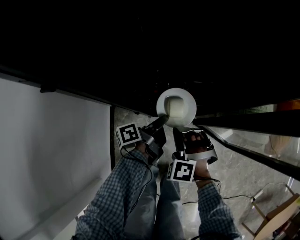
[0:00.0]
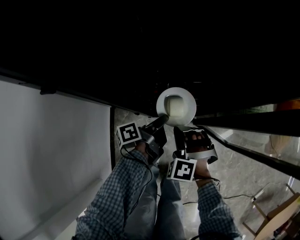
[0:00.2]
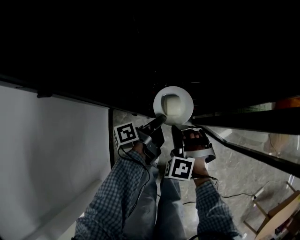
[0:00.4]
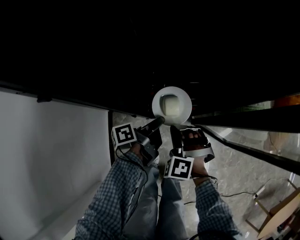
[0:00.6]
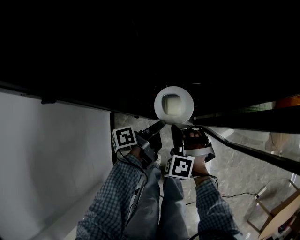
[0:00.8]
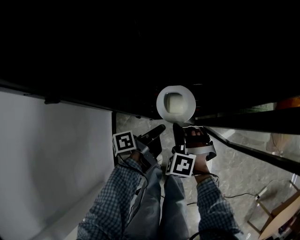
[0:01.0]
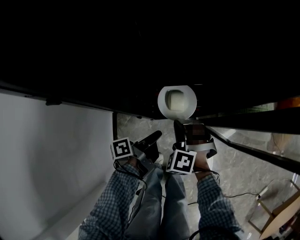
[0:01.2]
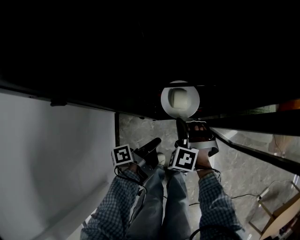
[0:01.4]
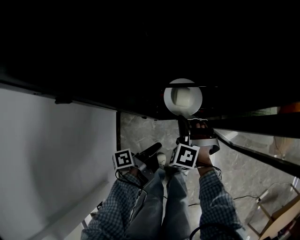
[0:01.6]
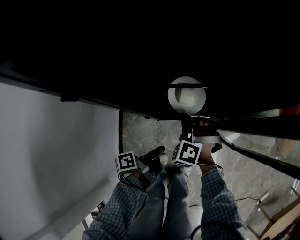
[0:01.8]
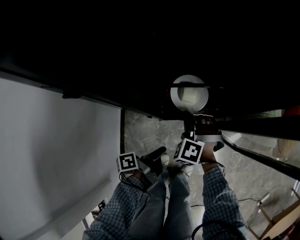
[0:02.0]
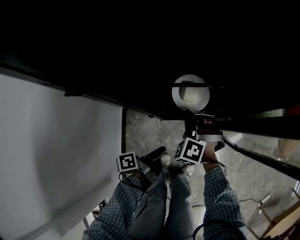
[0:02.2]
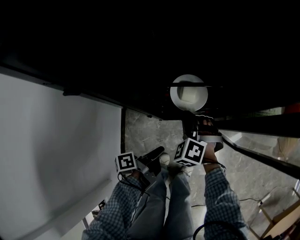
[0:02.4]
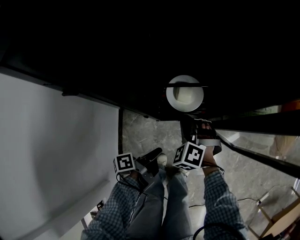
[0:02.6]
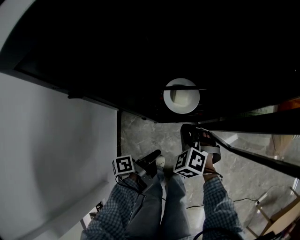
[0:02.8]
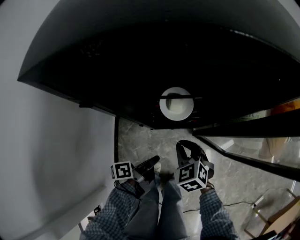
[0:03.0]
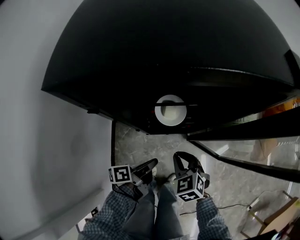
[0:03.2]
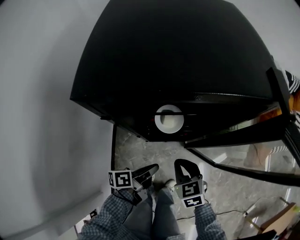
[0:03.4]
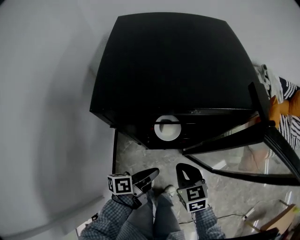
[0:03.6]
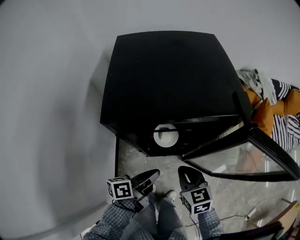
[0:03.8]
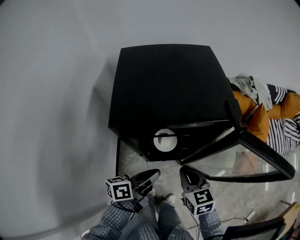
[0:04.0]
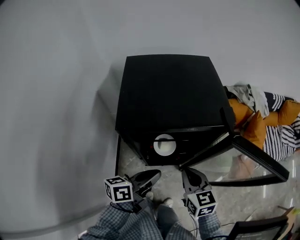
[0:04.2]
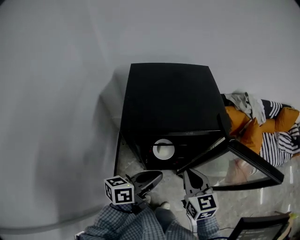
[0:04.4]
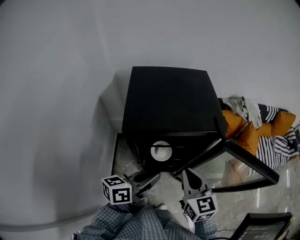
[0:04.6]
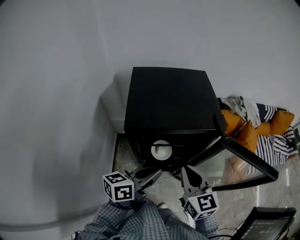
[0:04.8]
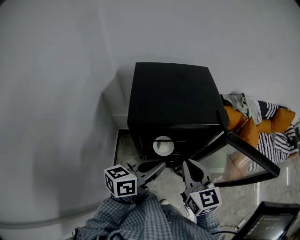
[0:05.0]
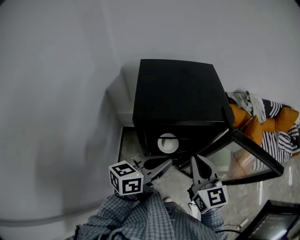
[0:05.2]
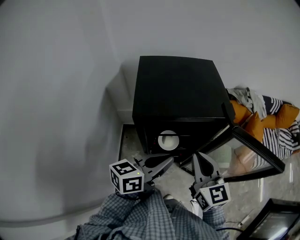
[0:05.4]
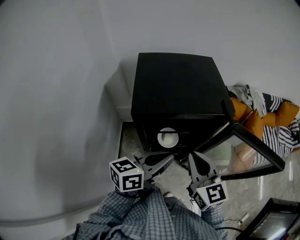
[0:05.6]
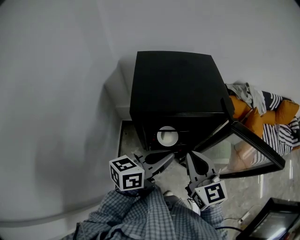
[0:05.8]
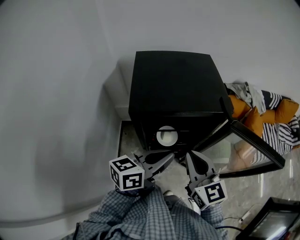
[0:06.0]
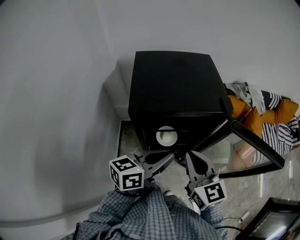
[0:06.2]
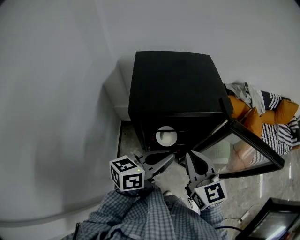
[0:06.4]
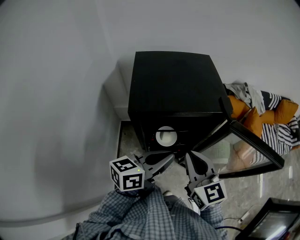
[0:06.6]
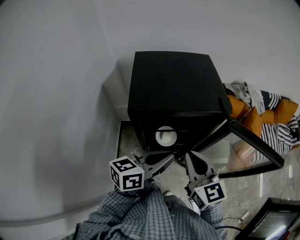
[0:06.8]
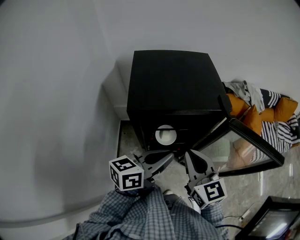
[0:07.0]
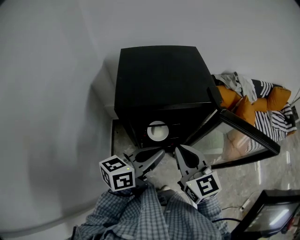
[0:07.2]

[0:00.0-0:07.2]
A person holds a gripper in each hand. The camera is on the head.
0.0 to 1.4 s: The right gripper moves some 5 cm.
2.8 to 4.4 s: The right gripper travels upward by roughly 35 cm, and twists about 50 degrees clockwise, seen from behind.
4.4 to 5.8 s: The right gripper goes approximately 5 cm upward.

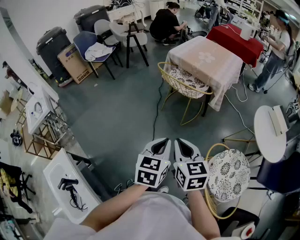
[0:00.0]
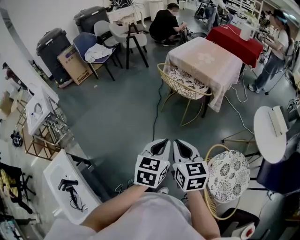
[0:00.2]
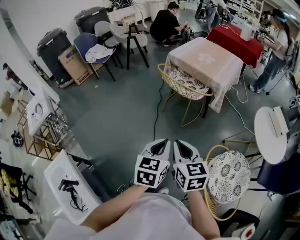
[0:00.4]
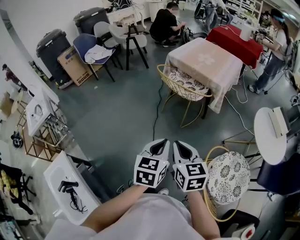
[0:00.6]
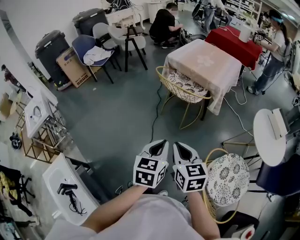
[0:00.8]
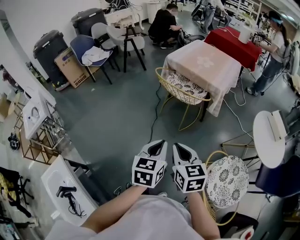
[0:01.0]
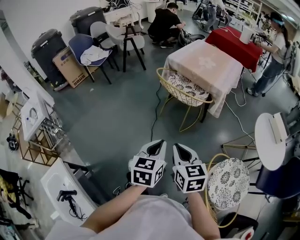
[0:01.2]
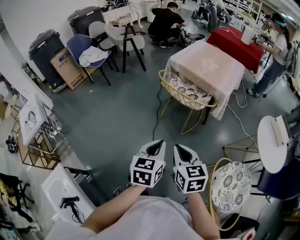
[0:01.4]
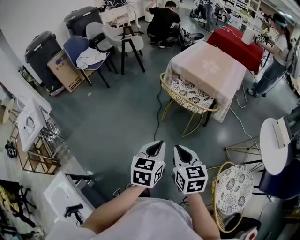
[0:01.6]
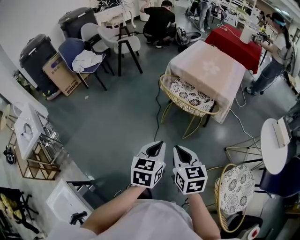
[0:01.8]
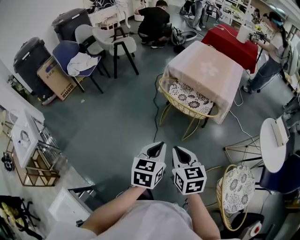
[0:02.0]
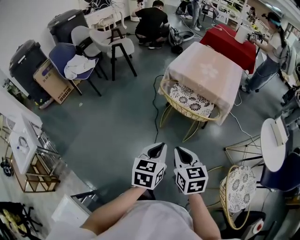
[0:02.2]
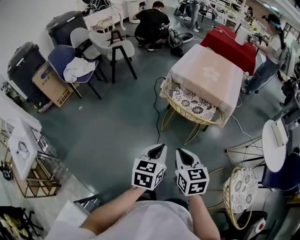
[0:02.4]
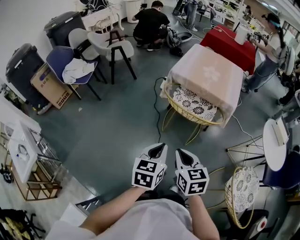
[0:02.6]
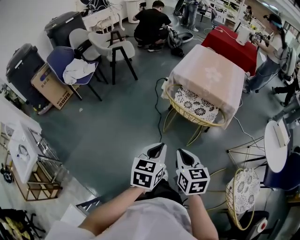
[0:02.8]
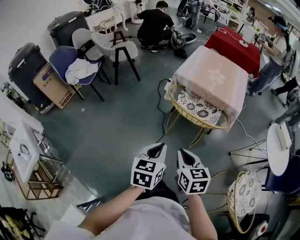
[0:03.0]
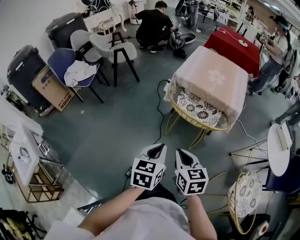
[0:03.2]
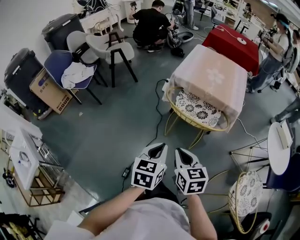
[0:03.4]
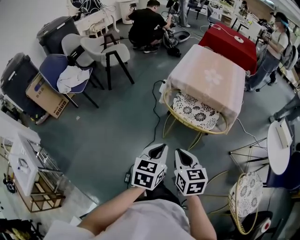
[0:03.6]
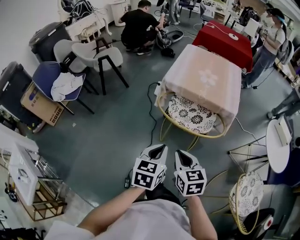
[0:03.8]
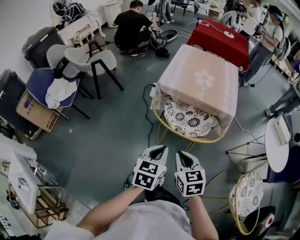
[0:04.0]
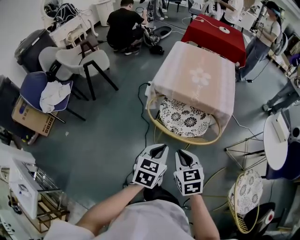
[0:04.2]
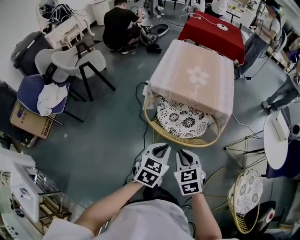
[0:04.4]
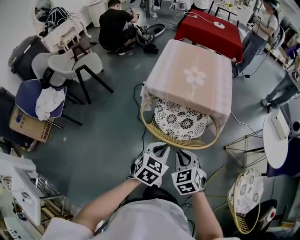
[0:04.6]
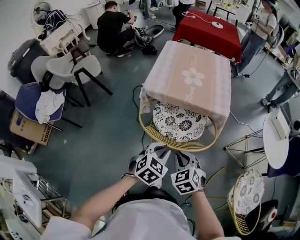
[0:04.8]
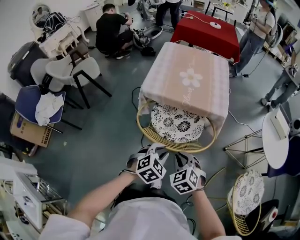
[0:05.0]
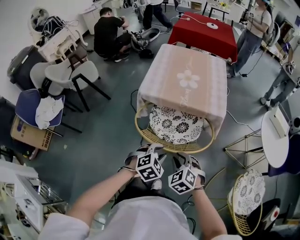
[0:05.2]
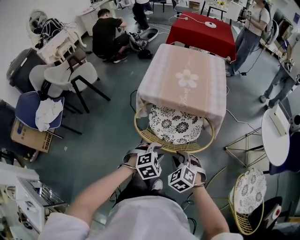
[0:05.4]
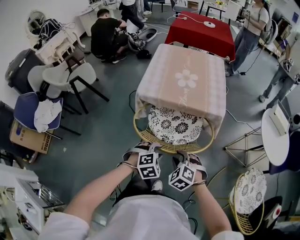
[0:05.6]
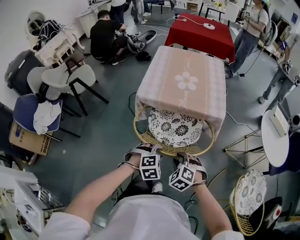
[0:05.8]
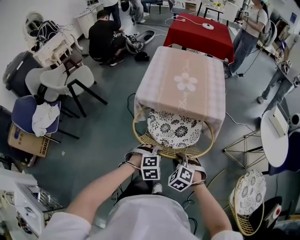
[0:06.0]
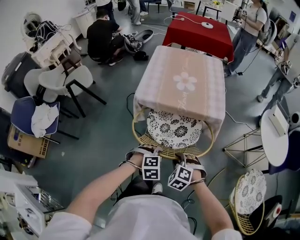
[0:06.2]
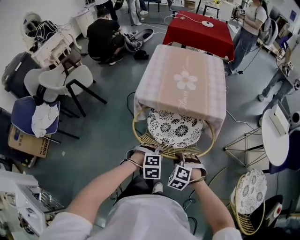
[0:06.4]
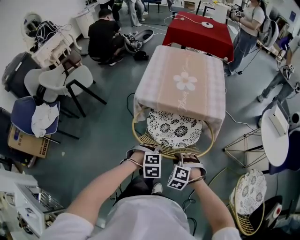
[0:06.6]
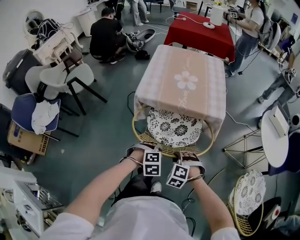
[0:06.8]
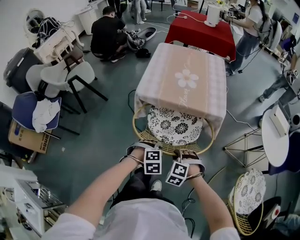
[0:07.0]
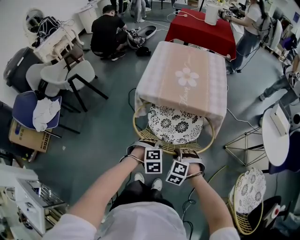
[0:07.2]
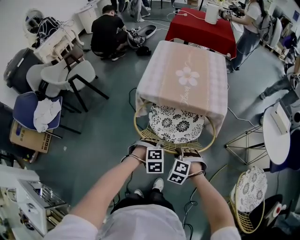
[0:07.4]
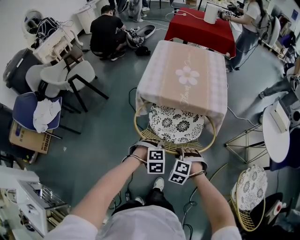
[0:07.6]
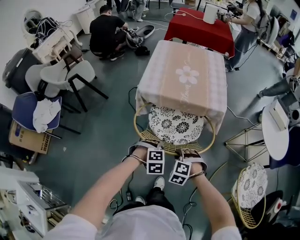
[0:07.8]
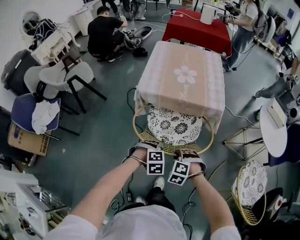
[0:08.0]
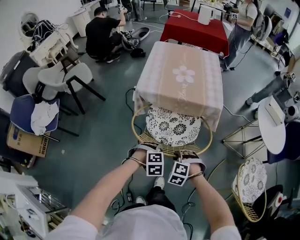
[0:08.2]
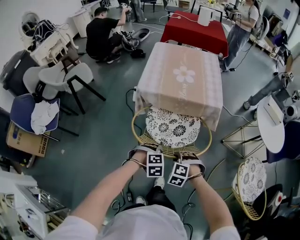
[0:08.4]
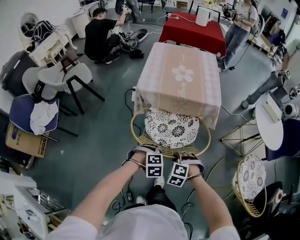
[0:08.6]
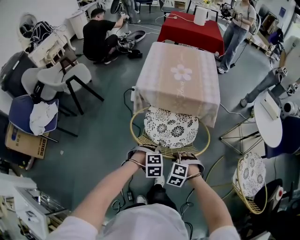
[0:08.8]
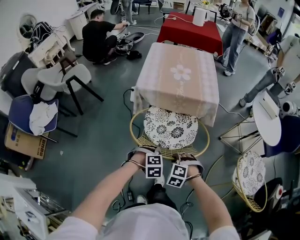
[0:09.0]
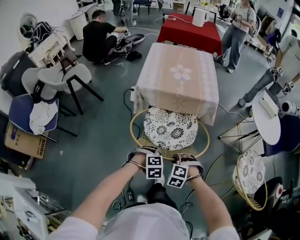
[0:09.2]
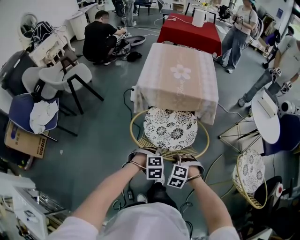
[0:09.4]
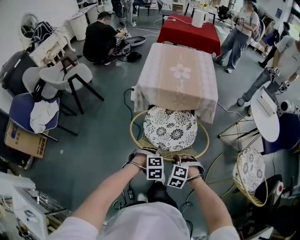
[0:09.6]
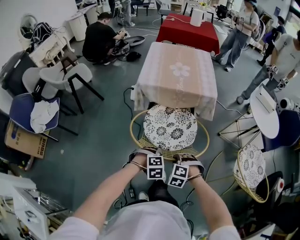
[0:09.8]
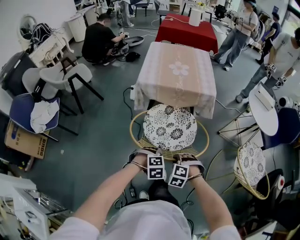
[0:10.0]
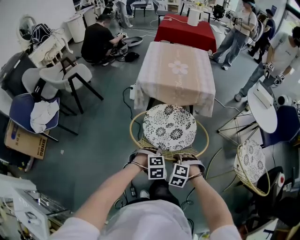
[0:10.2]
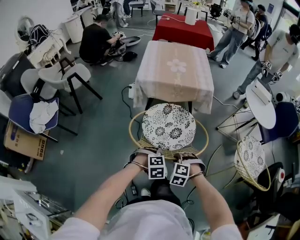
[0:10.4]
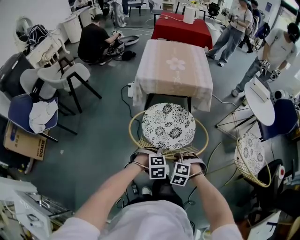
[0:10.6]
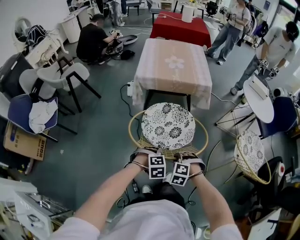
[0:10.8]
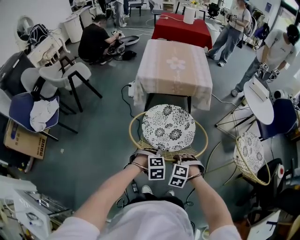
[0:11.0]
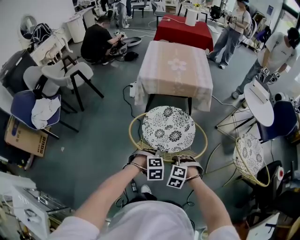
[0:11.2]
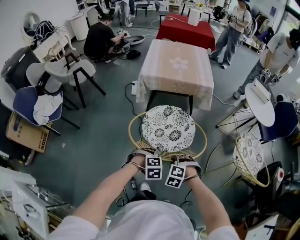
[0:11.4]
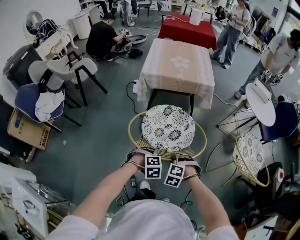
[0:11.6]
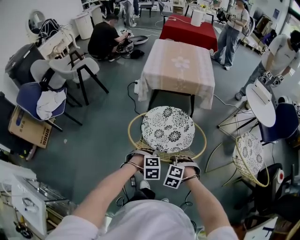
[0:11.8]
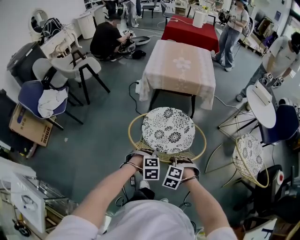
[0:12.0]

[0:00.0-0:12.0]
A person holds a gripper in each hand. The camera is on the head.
0.0 to 1.6 s: The grippers both shift forward and to the left by approximately 15 cm.
1.6 to 3.0 s: The left gripper travels to the left and forward by some 20 cm, while the right gripper shifts roughly 20 cm forward and to the left.
3.0 to 4.4 s: The two grippers go roughly 20 cm forward. The left gripper changes its angle by about 30 degrees. The right gripper rotates approximately 20 degrees.
4.4 to 6.0 s: The grippers both shift downward and forward by about 15 cm. The left gripper twists about 60 degrees clockwise, seen from behind, and opens its fingers; the right gripper rotates about 40 degrees, and opens up.
6.0 to 7.6 s: The grippers stay close to where they were, moving slightly.
7.6 to 9.0 s: Both grippers travel together backward, roughly 10 cm.
9.0 to 10.4 s: Both grippers travel together backward, about 10 cm.
10.4 to 12.0 s: The grippers both shift backward by roughly 10 cm.

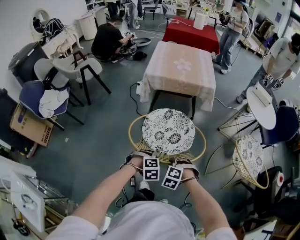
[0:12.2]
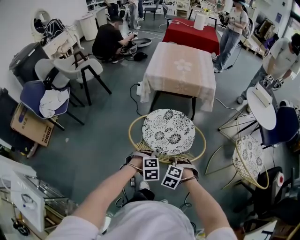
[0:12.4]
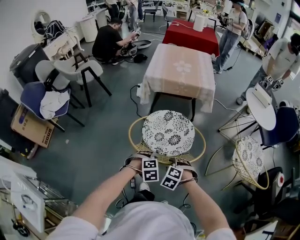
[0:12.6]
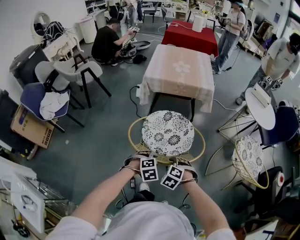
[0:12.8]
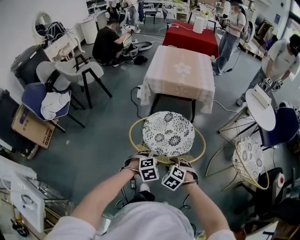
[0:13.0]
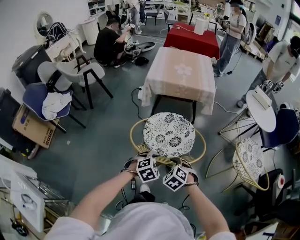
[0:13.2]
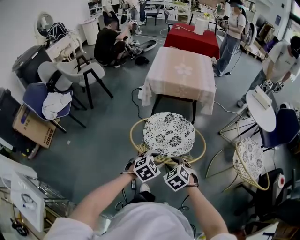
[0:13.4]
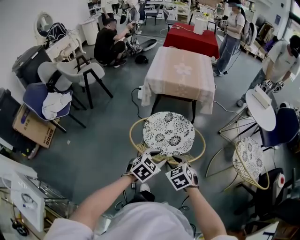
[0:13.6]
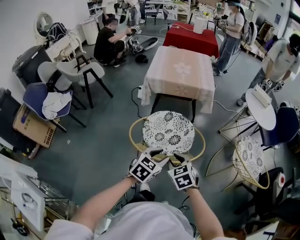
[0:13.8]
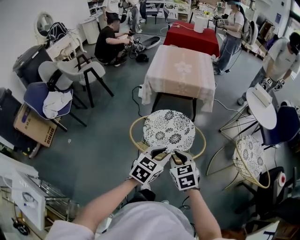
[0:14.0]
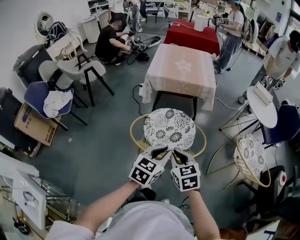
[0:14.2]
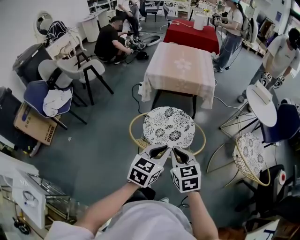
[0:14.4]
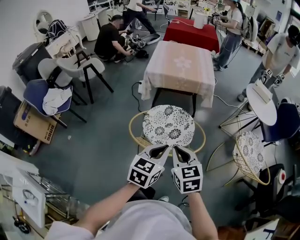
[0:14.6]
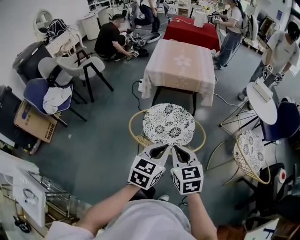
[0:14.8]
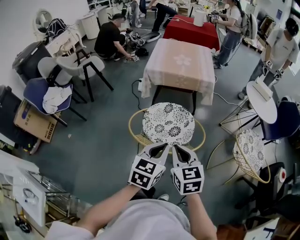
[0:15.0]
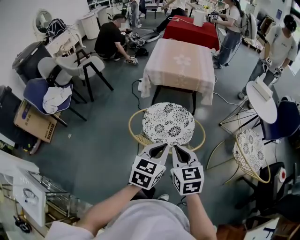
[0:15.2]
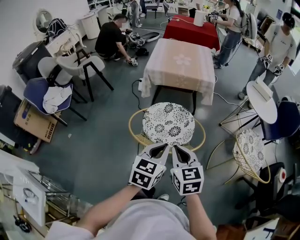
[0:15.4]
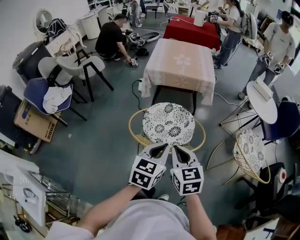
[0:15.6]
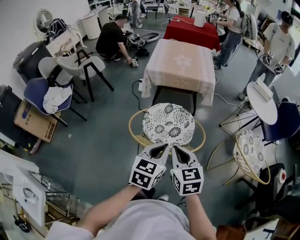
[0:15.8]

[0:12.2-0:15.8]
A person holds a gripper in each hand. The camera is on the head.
12.2 to 14.0 s: The two grippers go approximately 15 cm upward. The left gripper angles its fingers upward, by some 40 degrees. Meanwhile the right gripper rolls clockwise, seen from behind, by about 50 degrees.
14.0 to 15.8 s: Both grippers travel together upward, approximately 5 cm. The left gripper closes.

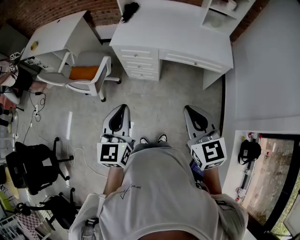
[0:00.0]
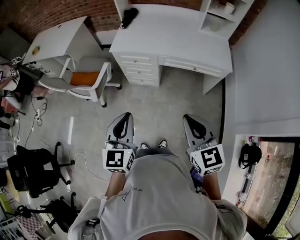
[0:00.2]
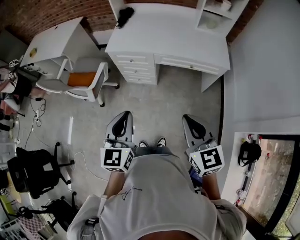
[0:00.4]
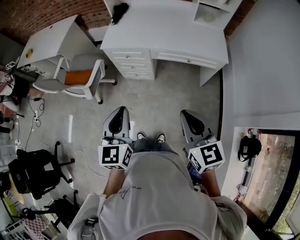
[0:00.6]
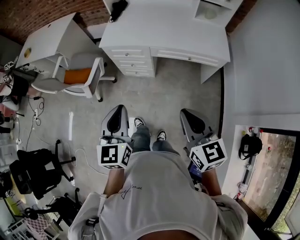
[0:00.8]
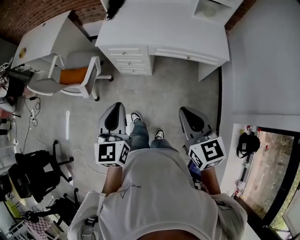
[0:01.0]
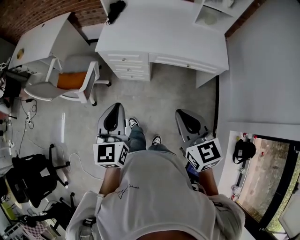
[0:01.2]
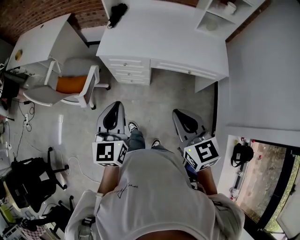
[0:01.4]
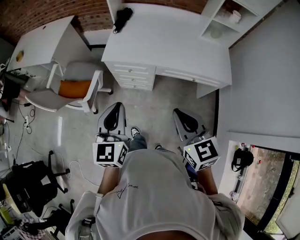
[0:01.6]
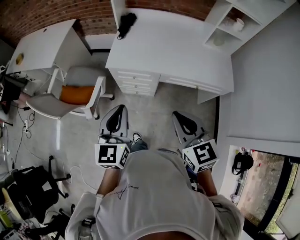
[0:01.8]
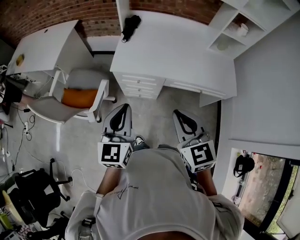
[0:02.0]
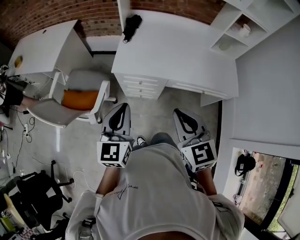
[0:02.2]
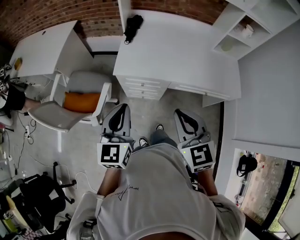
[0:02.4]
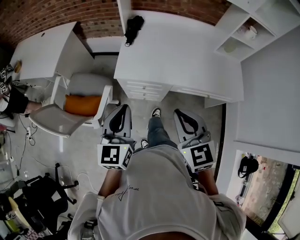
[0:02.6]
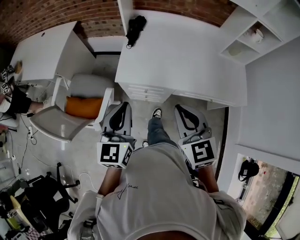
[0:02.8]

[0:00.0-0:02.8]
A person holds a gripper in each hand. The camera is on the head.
0.0 to 1.4 s: The grippers both shift forward by approximately 15 cm.
1.4 to 2.8 s: Both grippers move forward and to the left, roughly 25 cm.
